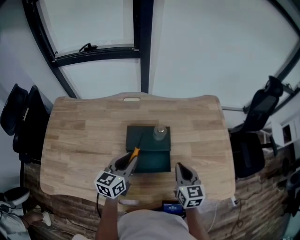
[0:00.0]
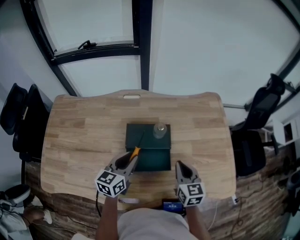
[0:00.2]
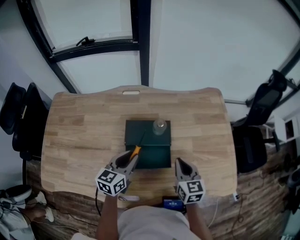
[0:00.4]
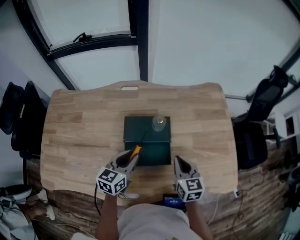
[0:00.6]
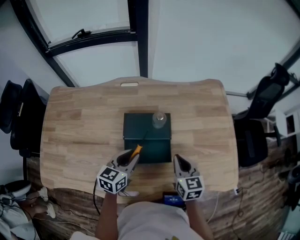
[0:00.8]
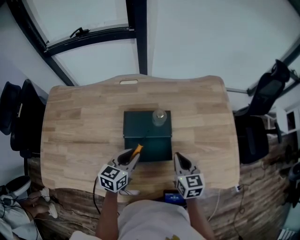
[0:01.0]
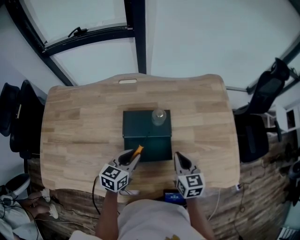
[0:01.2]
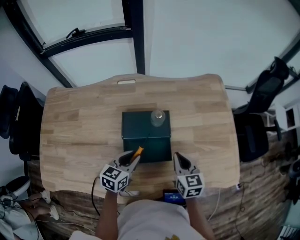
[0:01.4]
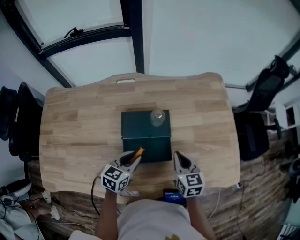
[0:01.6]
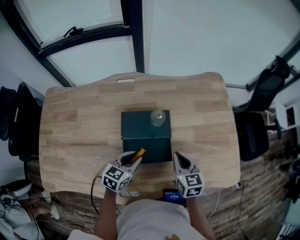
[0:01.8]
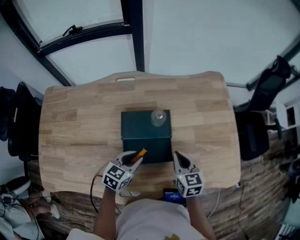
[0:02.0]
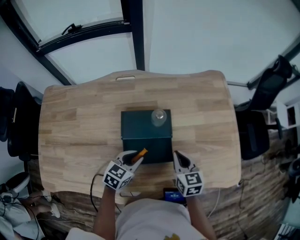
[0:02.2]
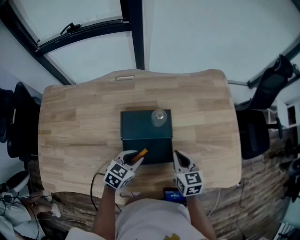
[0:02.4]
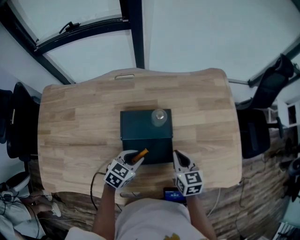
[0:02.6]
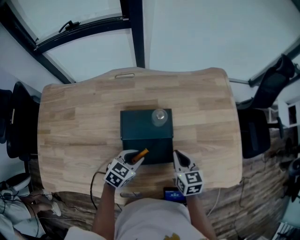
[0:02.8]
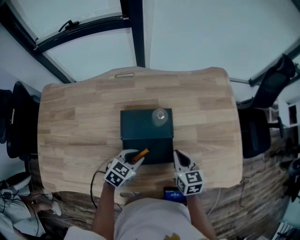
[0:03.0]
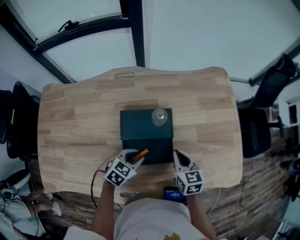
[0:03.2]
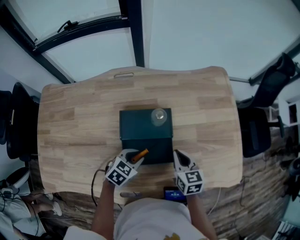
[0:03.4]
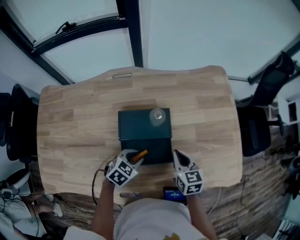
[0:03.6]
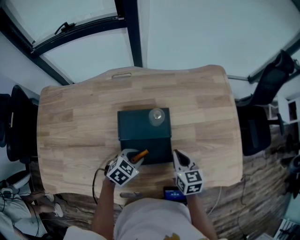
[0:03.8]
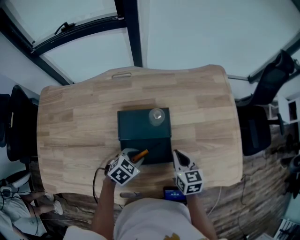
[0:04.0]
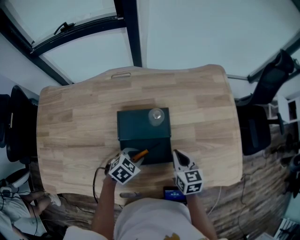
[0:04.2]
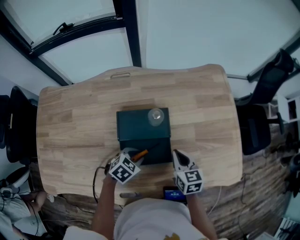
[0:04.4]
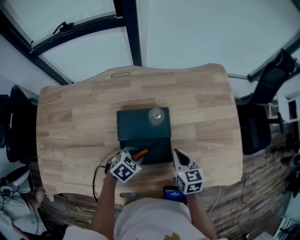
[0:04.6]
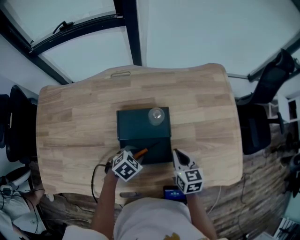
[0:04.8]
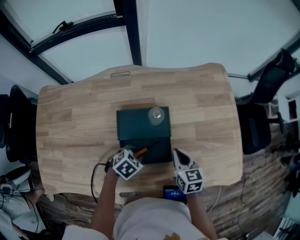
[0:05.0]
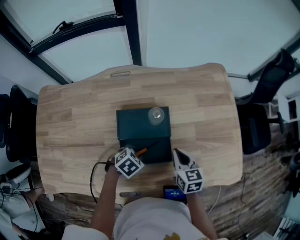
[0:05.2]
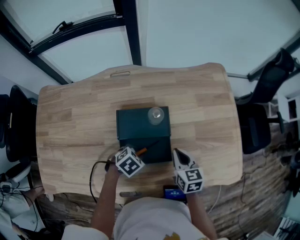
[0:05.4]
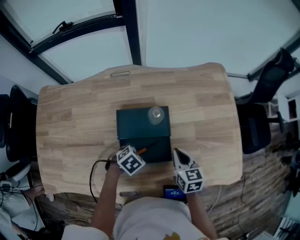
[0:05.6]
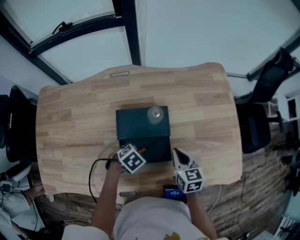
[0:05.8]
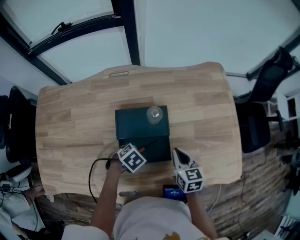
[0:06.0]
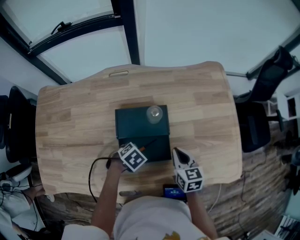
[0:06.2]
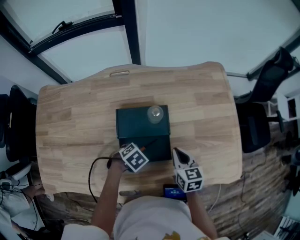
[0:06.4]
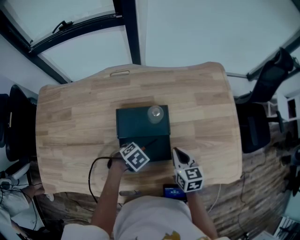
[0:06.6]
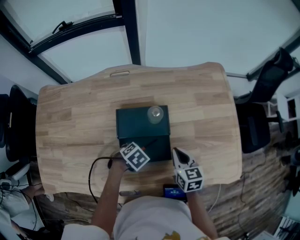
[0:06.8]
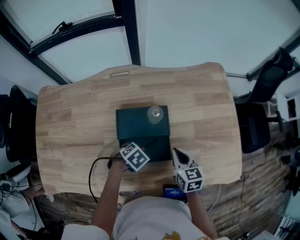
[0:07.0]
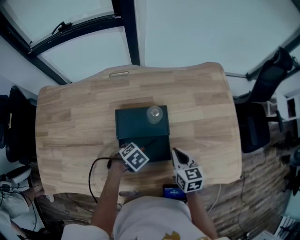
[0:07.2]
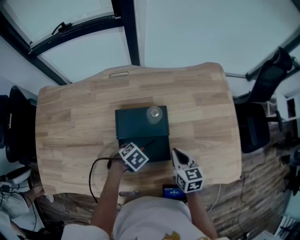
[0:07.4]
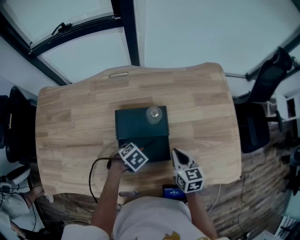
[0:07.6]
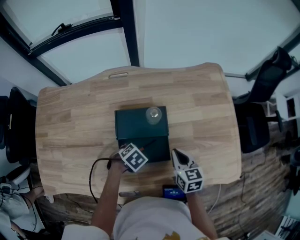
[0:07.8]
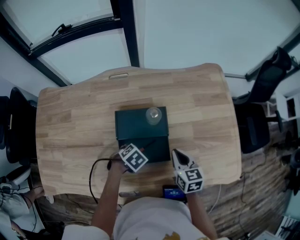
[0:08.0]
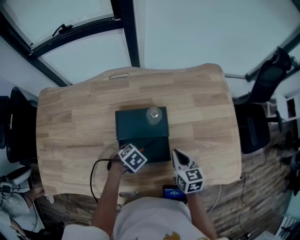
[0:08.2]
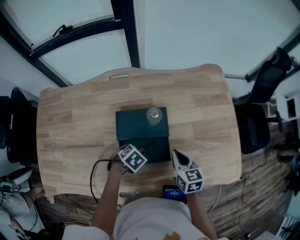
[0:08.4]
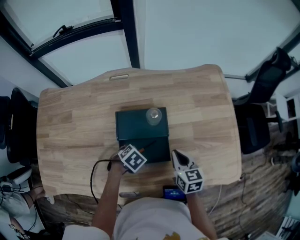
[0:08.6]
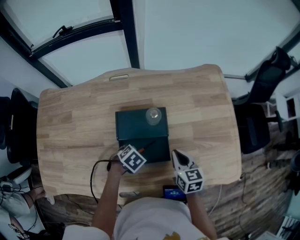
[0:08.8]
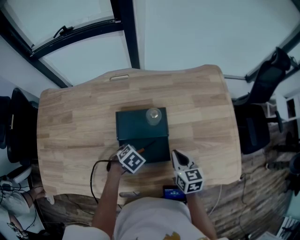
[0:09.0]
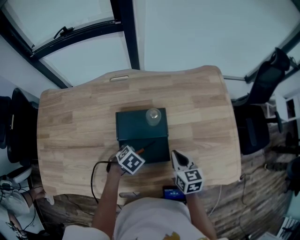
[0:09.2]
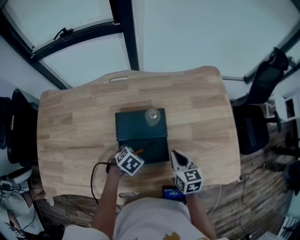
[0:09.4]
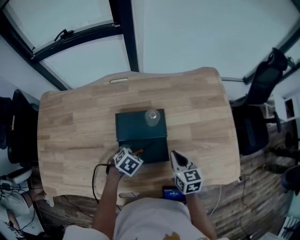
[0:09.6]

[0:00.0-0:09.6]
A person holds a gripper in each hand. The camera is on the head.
0:00.0 to 0:01.6: The right gripper travels downward by approximately 5 cm; the left gripper travels downward by some 10 cm, and turns by roughly 20 degrees.
0:01.6 to 0:03.2: The left gripper shifts by approximately 5 cm, and swivels approximately 20 degrees.
0:03.2 to 0:04.8: The grippers make only small movements.
0:04.8 to 0:06.4: The grippers stay close to where they were, moving slightly.
0:06.4 to 0:08.0: The two grippers keep their place.
0:08.0 to 0:09.6: There are only small adjustments of the grippers.

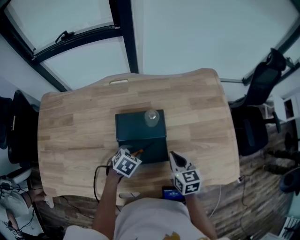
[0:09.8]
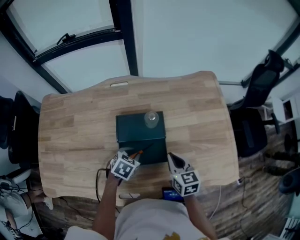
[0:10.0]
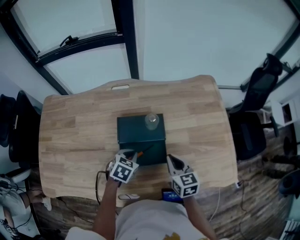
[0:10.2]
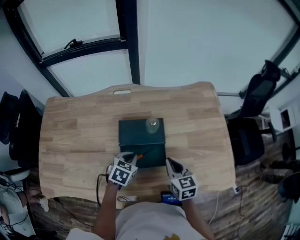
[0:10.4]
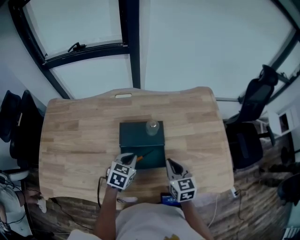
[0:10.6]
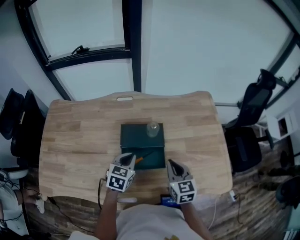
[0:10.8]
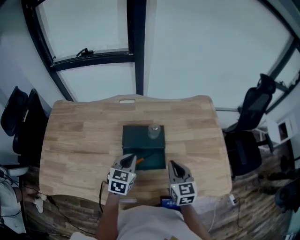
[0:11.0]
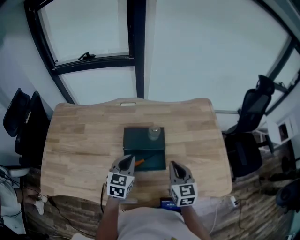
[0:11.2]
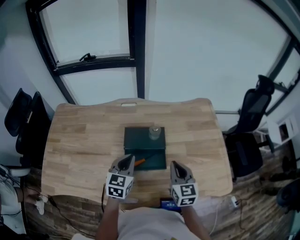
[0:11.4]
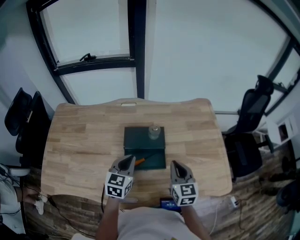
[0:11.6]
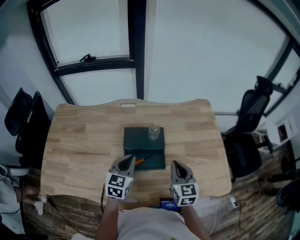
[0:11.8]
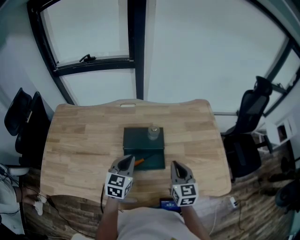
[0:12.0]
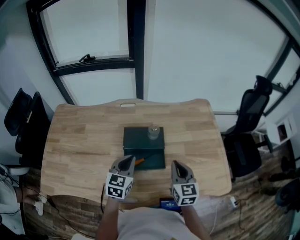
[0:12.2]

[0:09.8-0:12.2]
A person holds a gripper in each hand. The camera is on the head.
0:09.8 to 0:11.0: The grippers both shift upward by some 10 cm. The left gripper tips its fingers upward by approximately 30 degrees, and closes up.
0:11.0 to 0:12.2: The grippers move only a little.

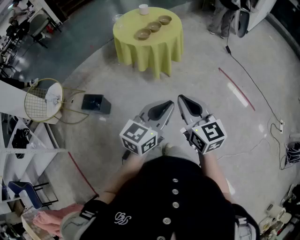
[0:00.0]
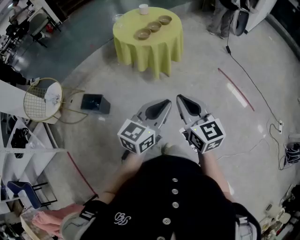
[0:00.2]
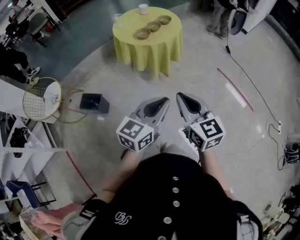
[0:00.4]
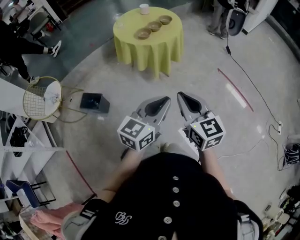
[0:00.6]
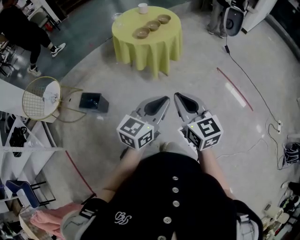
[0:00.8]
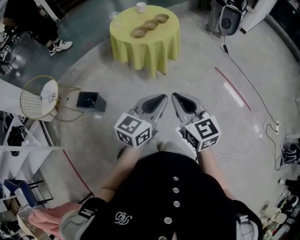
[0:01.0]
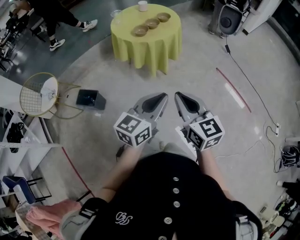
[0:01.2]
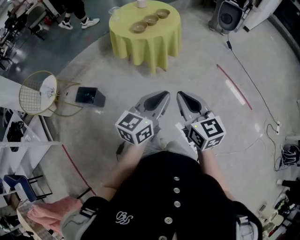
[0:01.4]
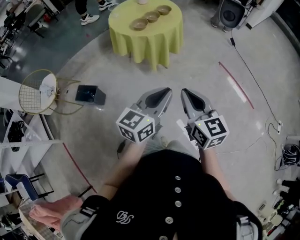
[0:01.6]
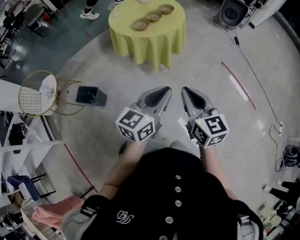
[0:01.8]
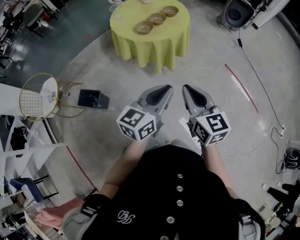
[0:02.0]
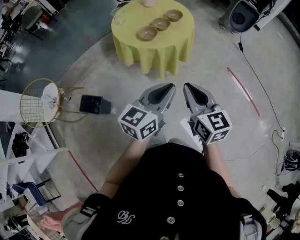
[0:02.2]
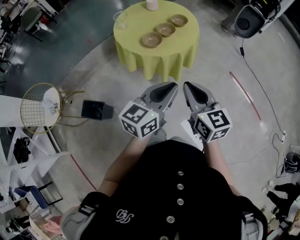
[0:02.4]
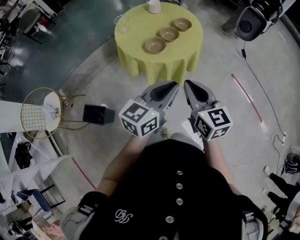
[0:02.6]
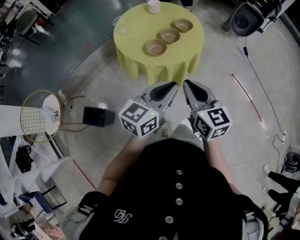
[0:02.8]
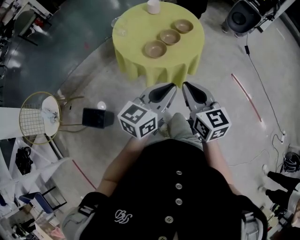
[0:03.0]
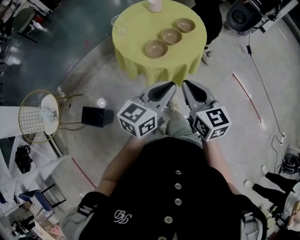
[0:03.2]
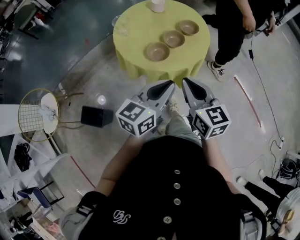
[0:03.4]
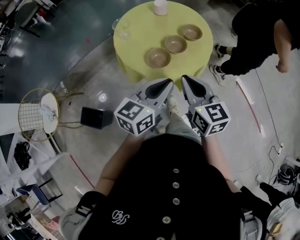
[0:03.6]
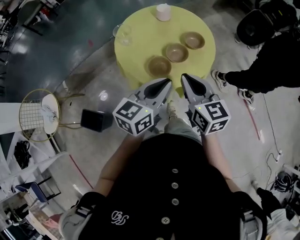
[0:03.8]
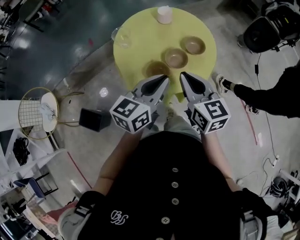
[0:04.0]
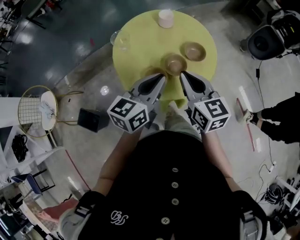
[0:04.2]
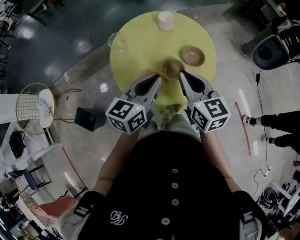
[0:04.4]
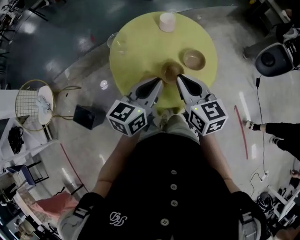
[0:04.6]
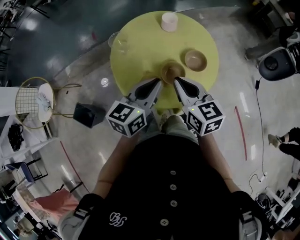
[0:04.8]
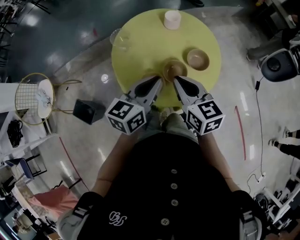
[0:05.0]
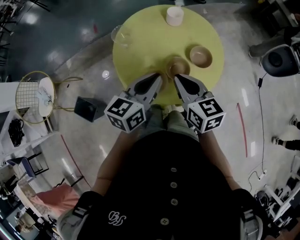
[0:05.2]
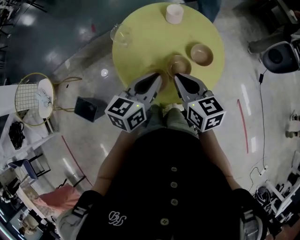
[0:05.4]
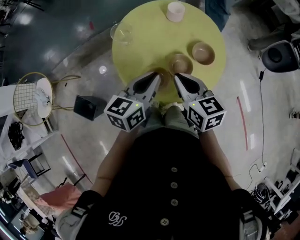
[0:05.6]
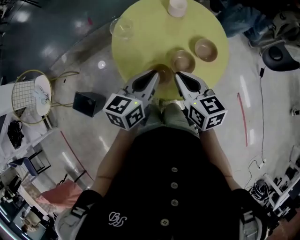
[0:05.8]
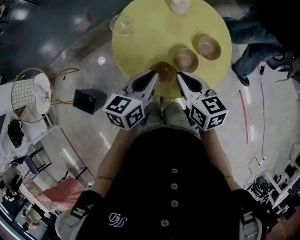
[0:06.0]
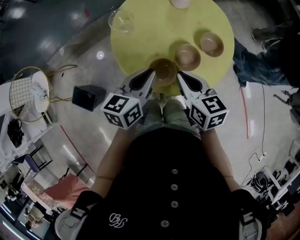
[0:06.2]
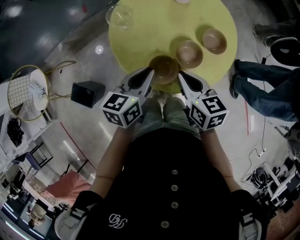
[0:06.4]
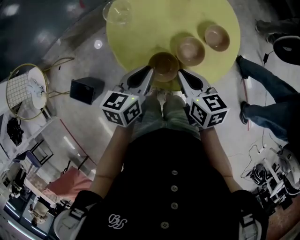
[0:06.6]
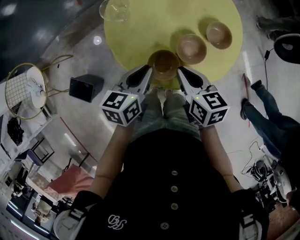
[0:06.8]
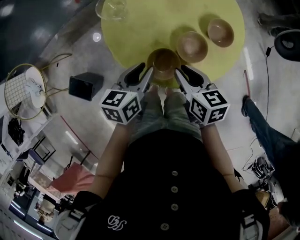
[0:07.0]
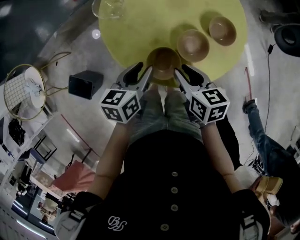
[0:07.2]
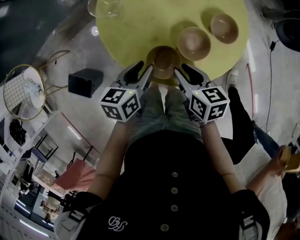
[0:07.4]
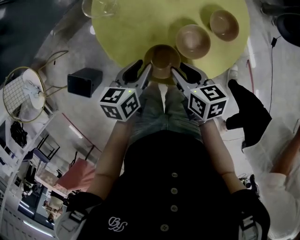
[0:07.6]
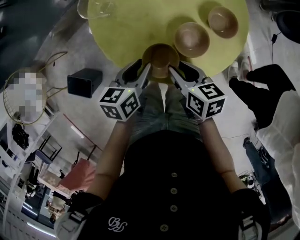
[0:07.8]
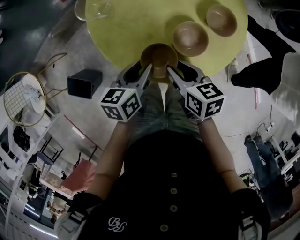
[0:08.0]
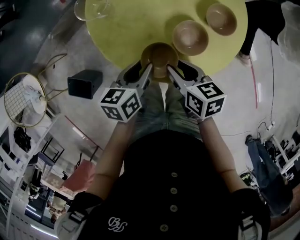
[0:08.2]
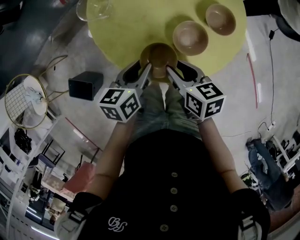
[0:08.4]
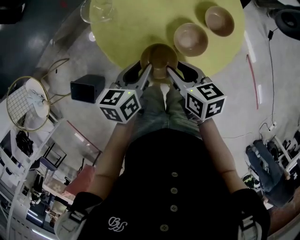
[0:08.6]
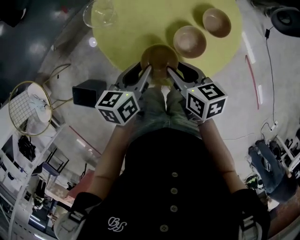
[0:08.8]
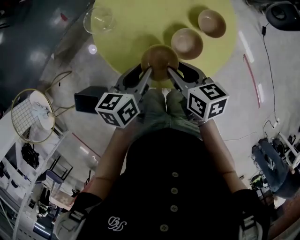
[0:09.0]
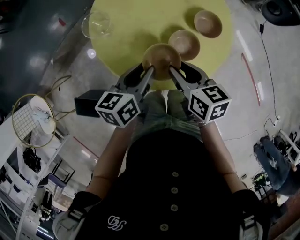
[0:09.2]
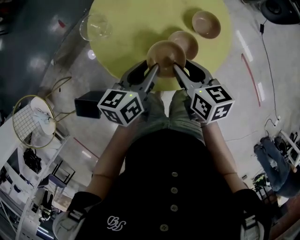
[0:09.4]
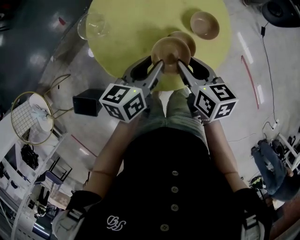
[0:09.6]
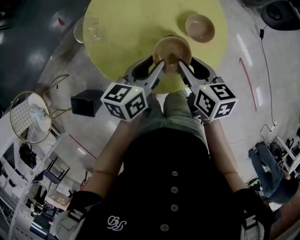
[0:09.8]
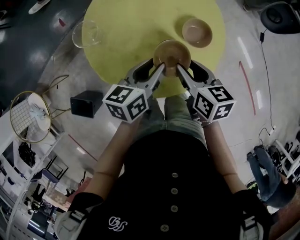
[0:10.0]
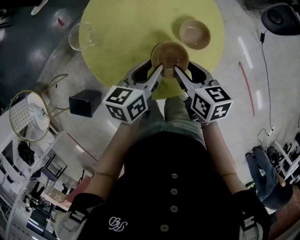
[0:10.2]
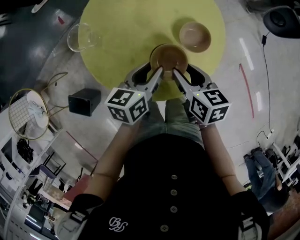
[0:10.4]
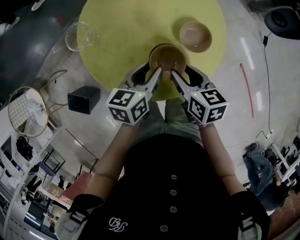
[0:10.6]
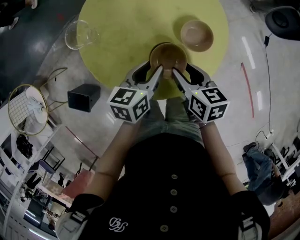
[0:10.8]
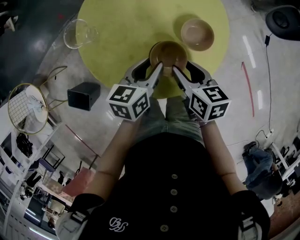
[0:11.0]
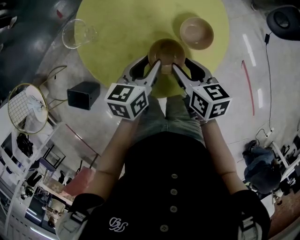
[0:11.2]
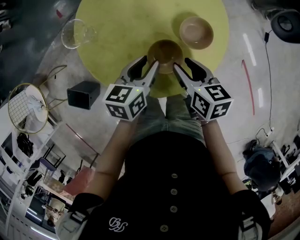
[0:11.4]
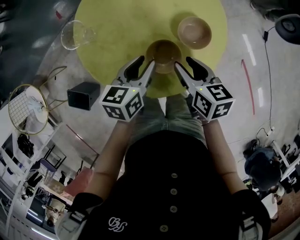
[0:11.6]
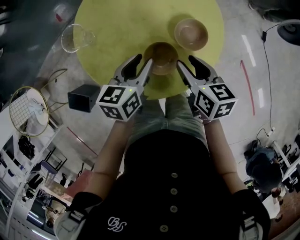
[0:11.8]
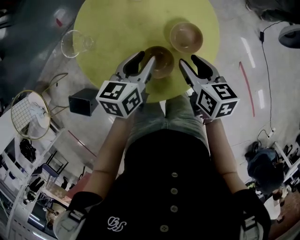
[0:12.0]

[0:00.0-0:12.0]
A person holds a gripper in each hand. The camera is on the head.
0:00.0 to 0:01.6: The left gripper heads forward, covering approximately 5 cm, while the right gripper shifts by some 5 cm.
0:01.6 to 0:03.0: Both grippers travel together forward and to the left, about 30 cm.
0:03.0 to 0:04.4: Both grippers move forward, approximately 25 cm. The left gripper rotates approximately 20 degrees.
0:04.4 to 0:06.0: The two grippers go roughly 10 cm downward and to the left.
0:06.0 to 0:07.6: Both grippers move downward, roughly 15 cm. The left gripper opens up. Meanwhile the right gripper swivels roughly 20 degrees, and opens up.
0:07.6 to 0:09.0: The right gripper ends up some 5 cm from where it was, while the left gripper goes some 5 cm upward.
0:09.0 to 0:10.4: Both grippers travel together to the right and forward, about 10 cm.
0:10.4 to 0:12.0: The right gripper changes place by some 5 cm.
